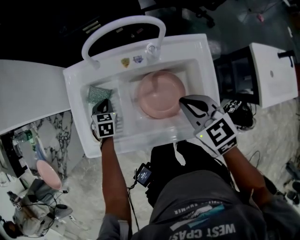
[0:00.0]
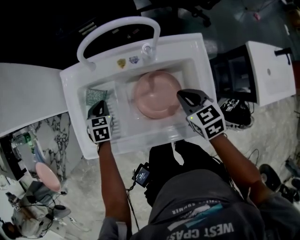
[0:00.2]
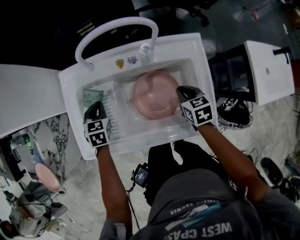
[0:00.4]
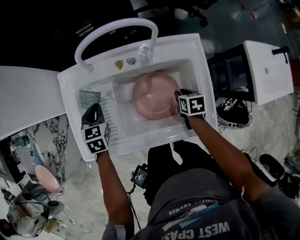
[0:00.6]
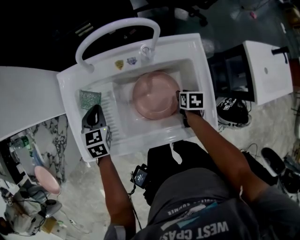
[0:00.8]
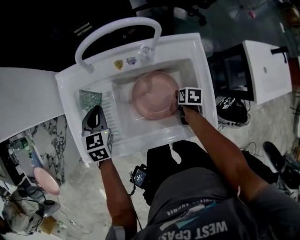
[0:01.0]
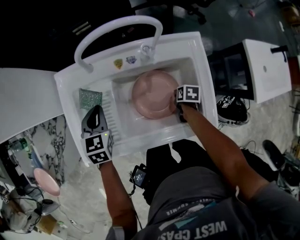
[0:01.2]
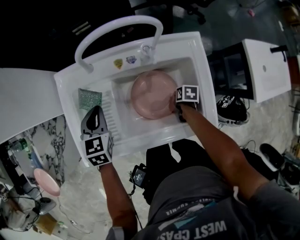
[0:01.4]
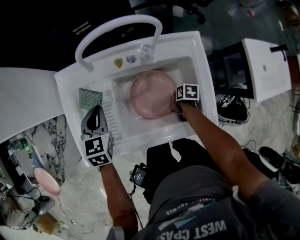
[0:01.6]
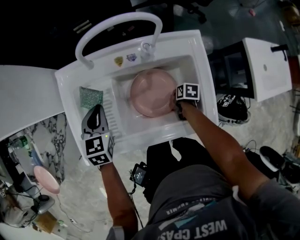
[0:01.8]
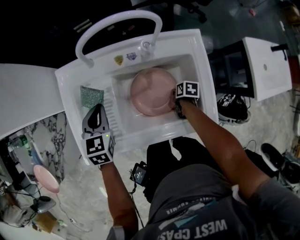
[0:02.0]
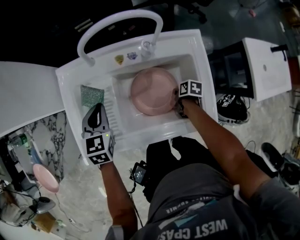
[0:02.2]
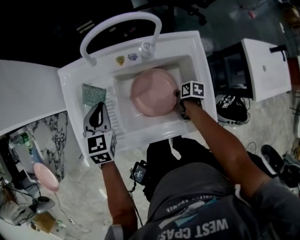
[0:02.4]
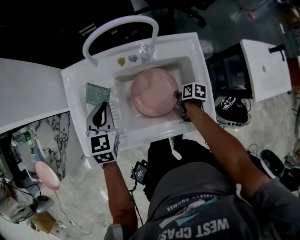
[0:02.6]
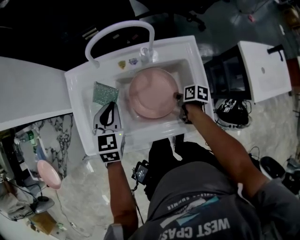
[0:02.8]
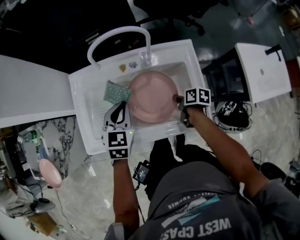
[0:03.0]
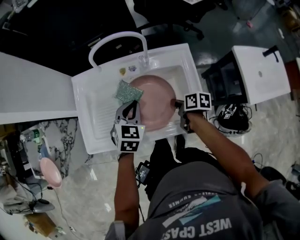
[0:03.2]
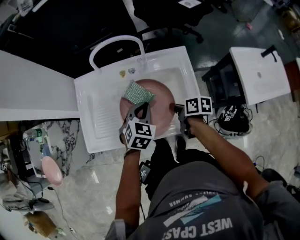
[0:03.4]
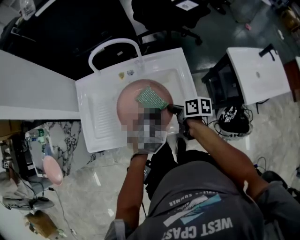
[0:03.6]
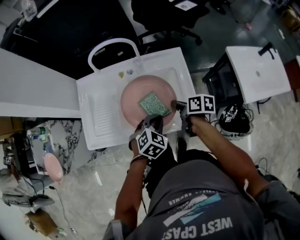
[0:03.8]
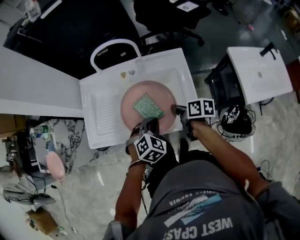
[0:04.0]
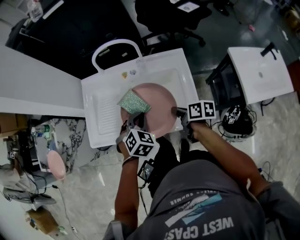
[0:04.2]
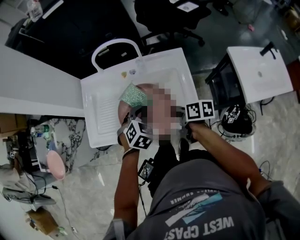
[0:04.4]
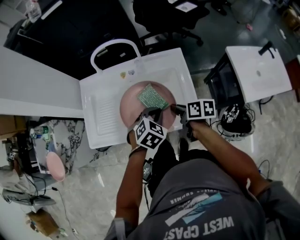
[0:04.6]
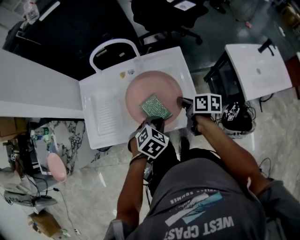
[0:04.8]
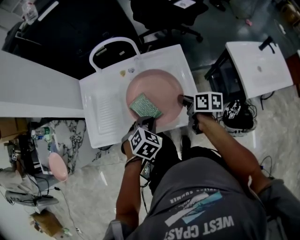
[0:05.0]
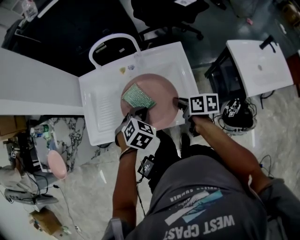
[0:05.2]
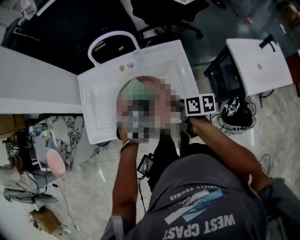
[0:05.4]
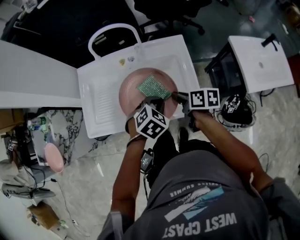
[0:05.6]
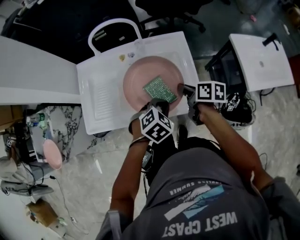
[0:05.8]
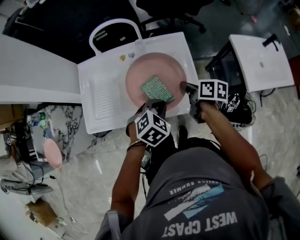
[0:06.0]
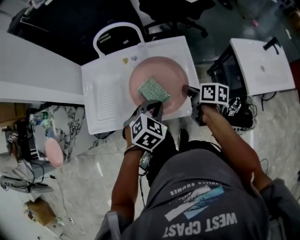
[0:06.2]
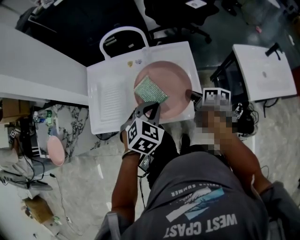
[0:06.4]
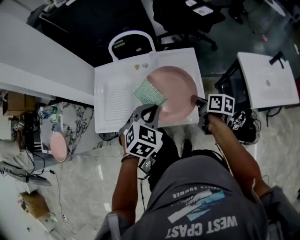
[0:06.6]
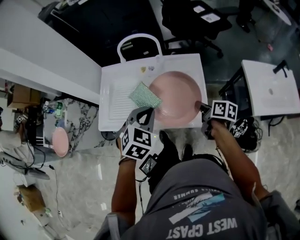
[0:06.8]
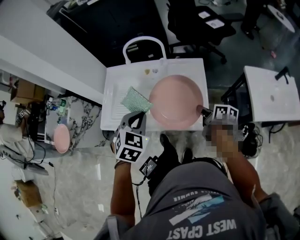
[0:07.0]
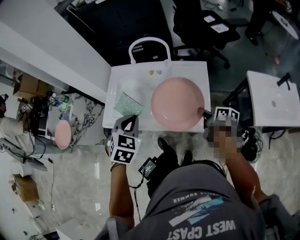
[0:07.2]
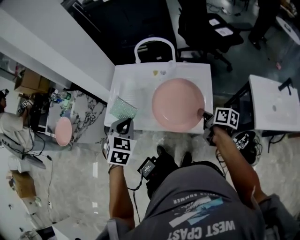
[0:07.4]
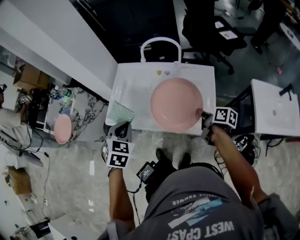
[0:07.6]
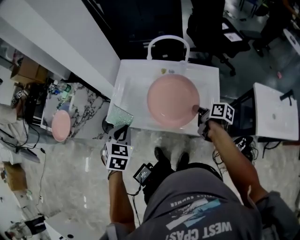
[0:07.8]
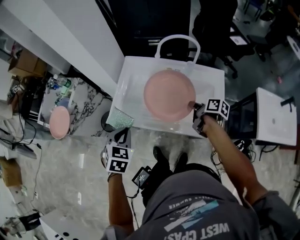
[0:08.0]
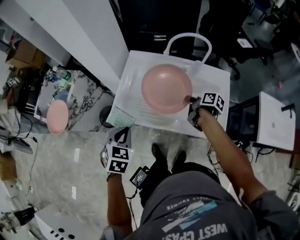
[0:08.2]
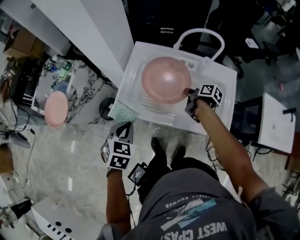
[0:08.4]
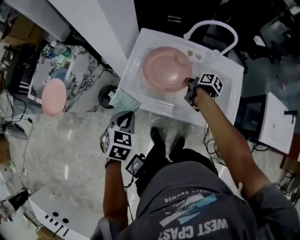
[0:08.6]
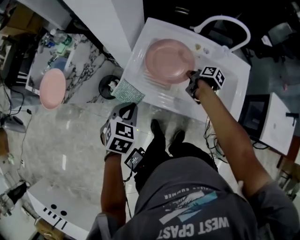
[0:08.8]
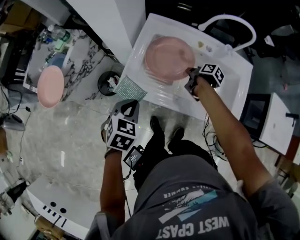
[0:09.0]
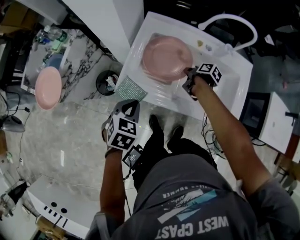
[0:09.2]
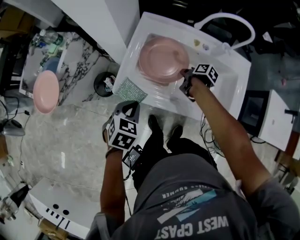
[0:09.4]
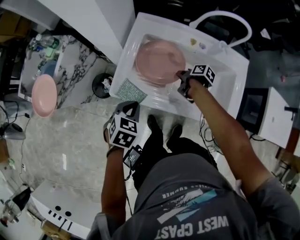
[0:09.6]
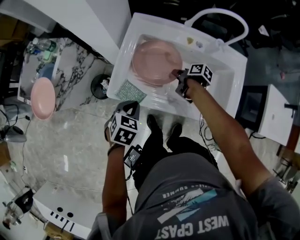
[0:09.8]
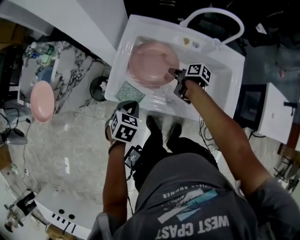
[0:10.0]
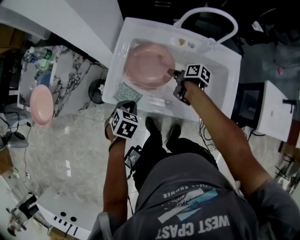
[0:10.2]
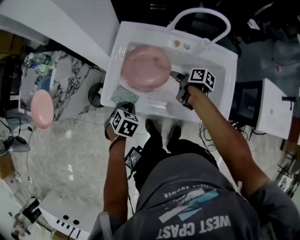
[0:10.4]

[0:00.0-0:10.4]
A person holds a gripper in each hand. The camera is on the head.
0:00.0 to 0:01.4: The left gripper travels upward by some 10 cm; the right gripper is displaced downward by approximately 30 cm, and rotates around the line of its fingers by roughly 50 degrees, clockwise from behind.
0:01.4 to 0:03.0: The right gripper shifts about 10 cm upward, and changes its angle by some 30 degrees; the left gripper ends up about 15 cm from where it was.
0:03.0 to 0:04.4: The right gripper goes about 15 cm upward and backward, while the left gripper moves to the right and backward, roughly 15 cm, and swivels approximately 30 degrees.
0:04.4 to 0:06.0: The left gripper goes left and right, about 10 cm each way, reversing 2 times; the right gripper moves left and right over about 5 cm, changing direction 2 times.
0:06.0 to 0:07.4: The left gripper moves roughly 25 cm, and changes its angle by roughly 40 degrees.
0:07.4 to 0:09.0: The left gripper goes roughly 20 cm to the left and downward, and swivels about 20 degrees. Meanwhile the right gripper travels forward, to the left and downward by about 35 cm, and swivels some 20 degrees.
0:09.0 to 0:10.4: The right gripper opens. The left gripper moves downward and to the right, some 10 cm.

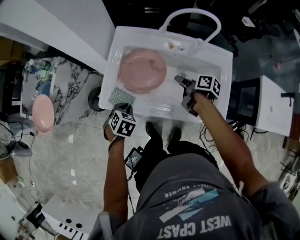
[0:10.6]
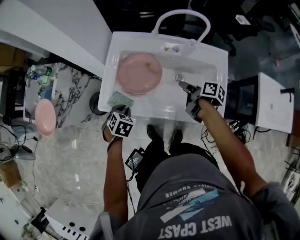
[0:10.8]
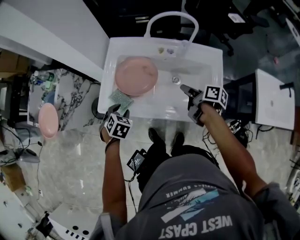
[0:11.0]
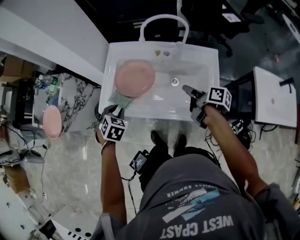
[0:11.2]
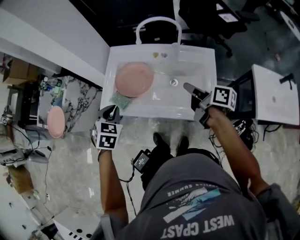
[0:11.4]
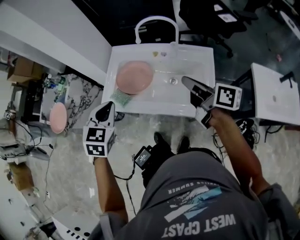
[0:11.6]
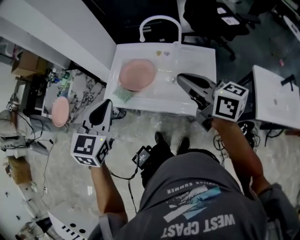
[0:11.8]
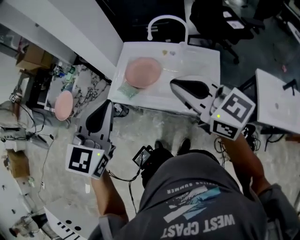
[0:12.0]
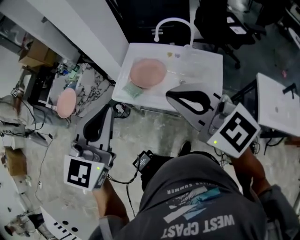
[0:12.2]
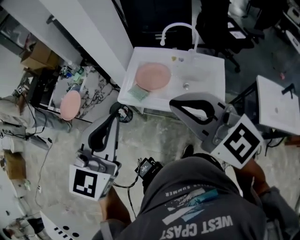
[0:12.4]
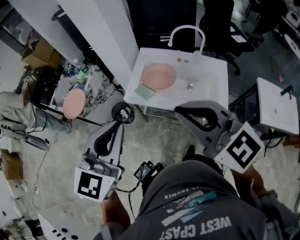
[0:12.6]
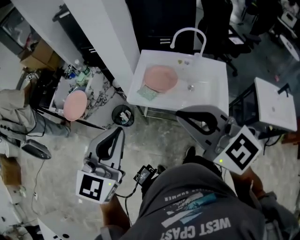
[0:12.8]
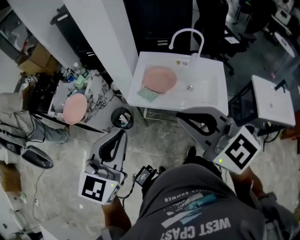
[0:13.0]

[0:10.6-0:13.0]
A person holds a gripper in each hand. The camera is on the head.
0:10.6 to 0:11.8: The right gripper shifts some 35 cm upward and backward, points its fingers roughly 40 degrees further upward, and closes its fingers, while the left gripper goes some 35 cm upward, angles its fingers upward, by roughly 40 degrees, and opens and closes again.
0:11.8 to 0:13.0: The left gripper shifts approximately 25 cm to the left and backward; the right gripper goes about 35 cm to the left, backward and upward, and twists some 40 degrees counterclockwise, seen from behind.

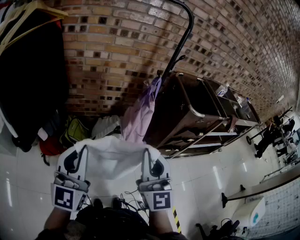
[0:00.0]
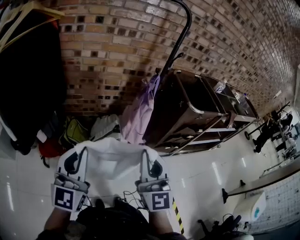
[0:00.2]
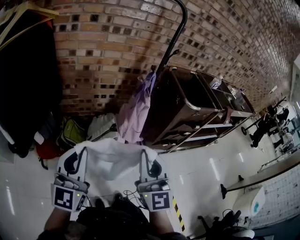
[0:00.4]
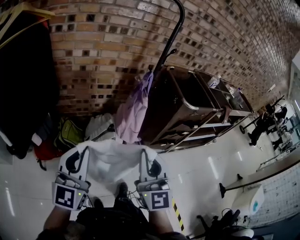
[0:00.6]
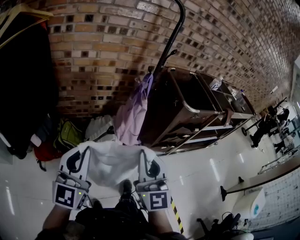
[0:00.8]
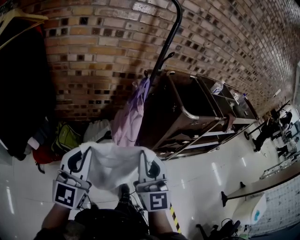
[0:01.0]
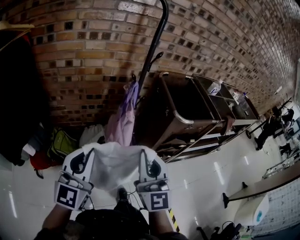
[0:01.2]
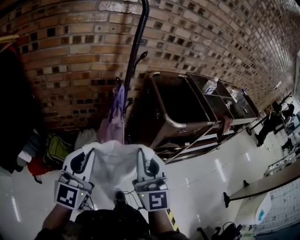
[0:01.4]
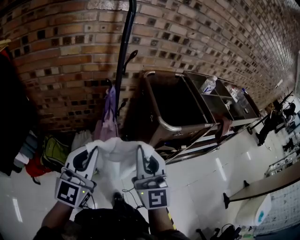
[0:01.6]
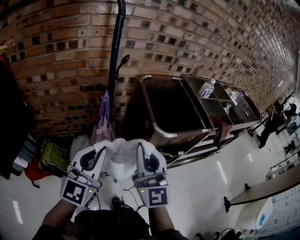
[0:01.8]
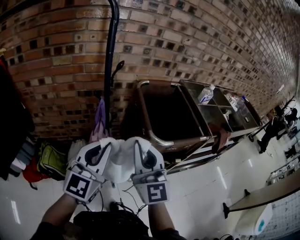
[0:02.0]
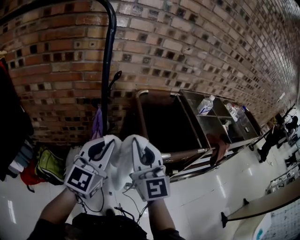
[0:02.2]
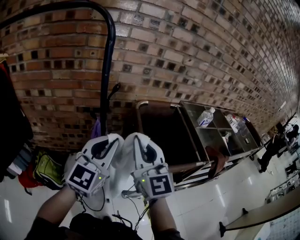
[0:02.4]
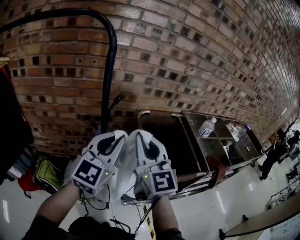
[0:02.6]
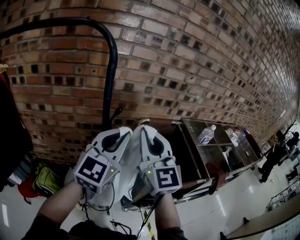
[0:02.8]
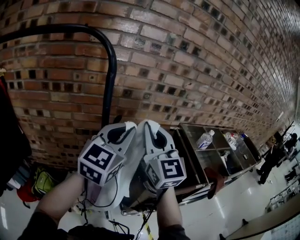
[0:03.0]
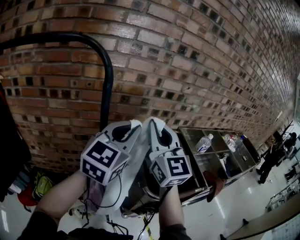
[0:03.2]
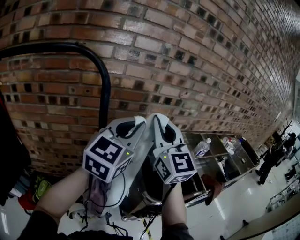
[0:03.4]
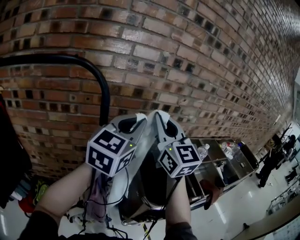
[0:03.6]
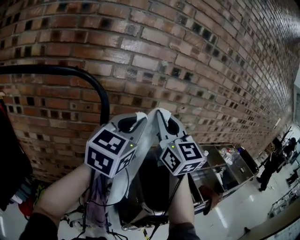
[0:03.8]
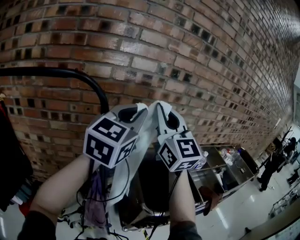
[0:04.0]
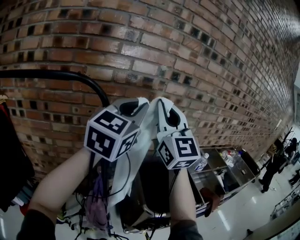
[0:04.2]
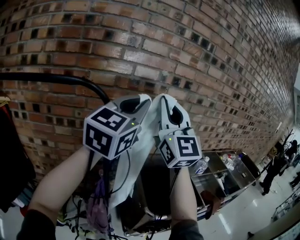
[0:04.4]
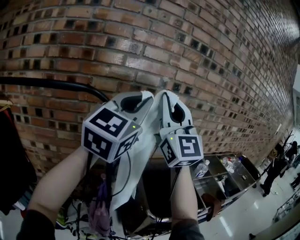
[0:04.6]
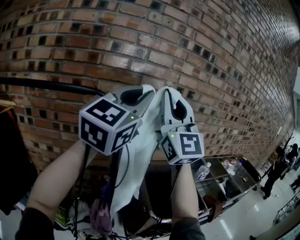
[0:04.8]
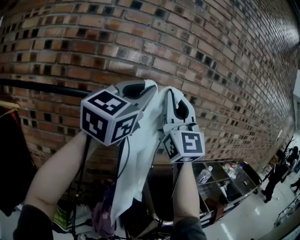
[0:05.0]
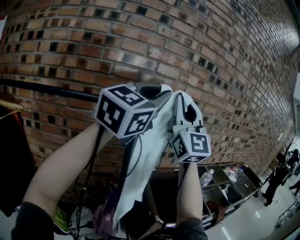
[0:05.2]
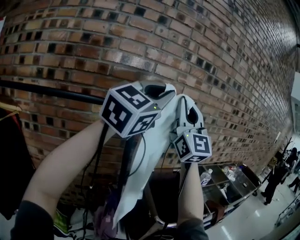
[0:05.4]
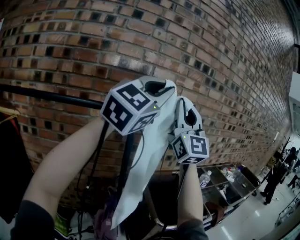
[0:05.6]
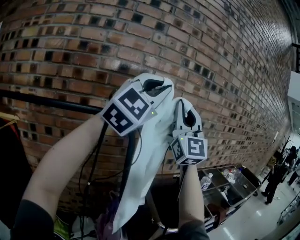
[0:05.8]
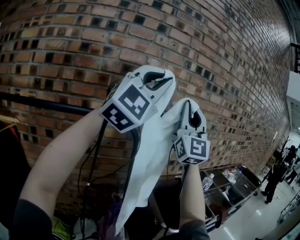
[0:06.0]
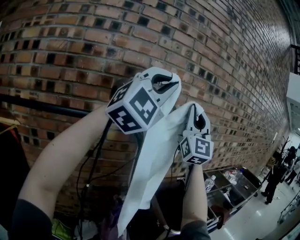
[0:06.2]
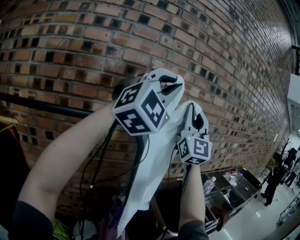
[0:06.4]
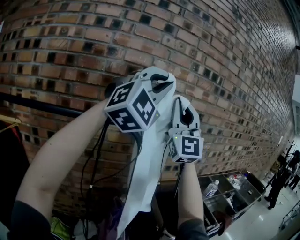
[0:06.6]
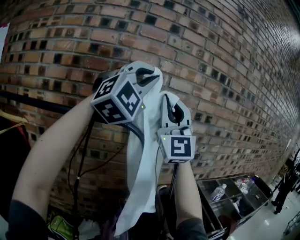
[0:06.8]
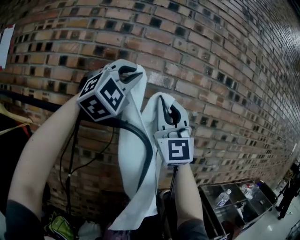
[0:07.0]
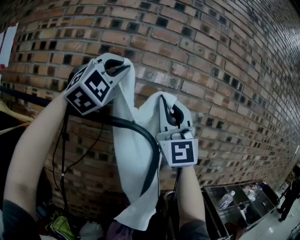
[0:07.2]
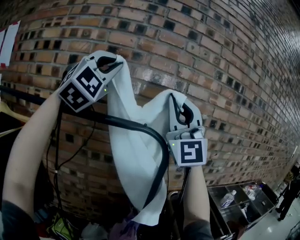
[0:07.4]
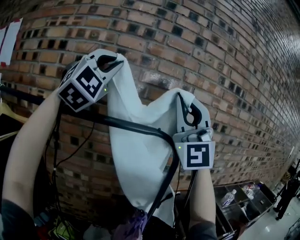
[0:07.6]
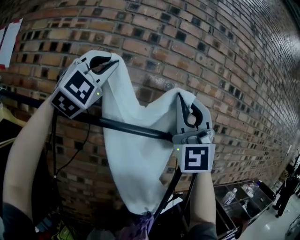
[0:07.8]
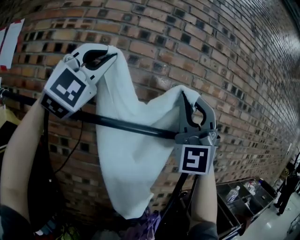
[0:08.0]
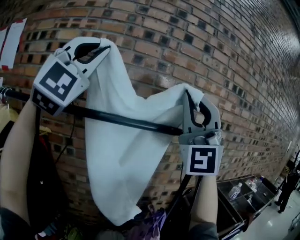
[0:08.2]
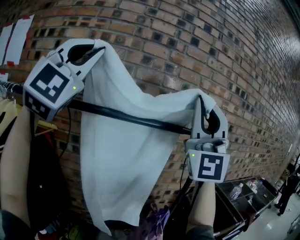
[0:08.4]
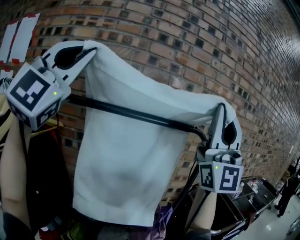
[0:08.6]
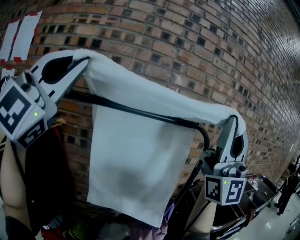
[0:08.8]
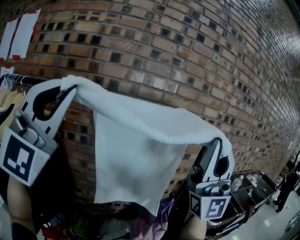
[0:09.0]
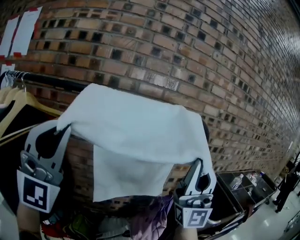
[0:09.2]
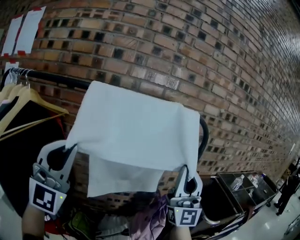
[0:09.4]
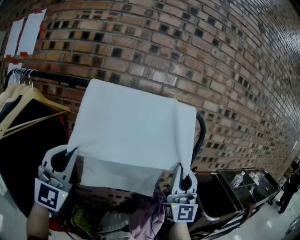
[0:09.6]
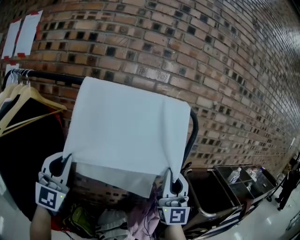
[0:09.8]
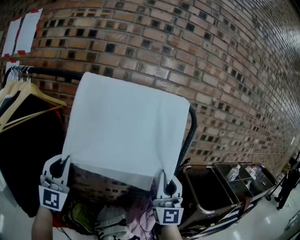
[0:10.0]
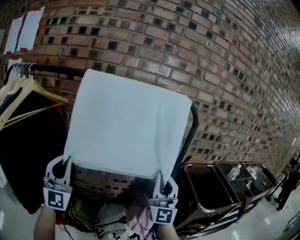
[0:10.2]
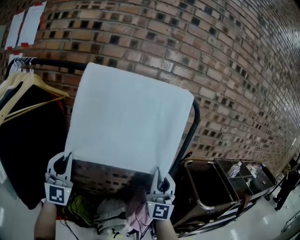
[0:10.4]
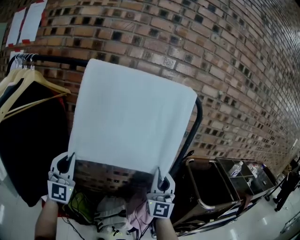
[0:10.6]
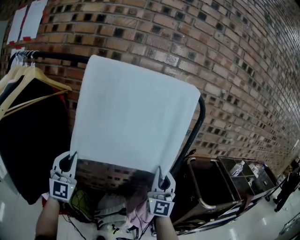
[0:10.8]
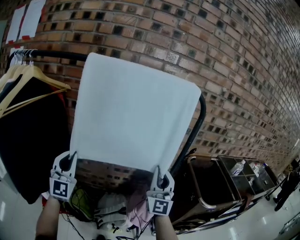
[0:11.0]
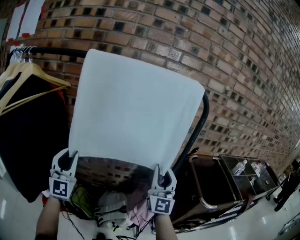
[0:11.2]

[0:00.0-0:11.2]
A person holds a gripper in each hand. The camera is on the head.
0:00.0 to 0:01.6: Both grippers move to the right and forward, roughly 35 cm.
0:01.6 to 0:03.2: The left gripper moves forward, upward and to the right, some 40 cm. Meanwhile the right gripper shifts roughly 40 cm forward and upward.
0:03.2 to 0:04.8: Both grippers move upward, some 25 cm. The right gripper changes its angle by roughly 30 degrees.
0:04.8 to 0:06.4: The left gripper moves upward, roughly 10 cm, and twists about 50 degrees clockwise, seen from behind; the right gripper shifts some 5 cm forward.
0:06.4 to 0:08.0: The left gripper changes place by about 40 cm, and swivels roughly 20 degrees; the right gripper ends up roughly 30 cm from where it was, and changes its angle by some 40 degrees.
0:08.0 to 0:09.6: The left gripper moves downward and backward, roughly 35 cm, and changes its angle by approximately 20 degrees. The right gripper shifts about 30 cm downward, and twists about 40 degrees clockwise, seen from behind.
0:09.6 to 0:11.2: Both grippers travel together downward, roughly 20 cm. The right gripper swivels about 20 degrees. The left gripper swivels about 20 degrees.
